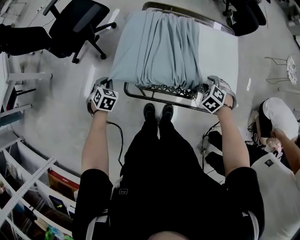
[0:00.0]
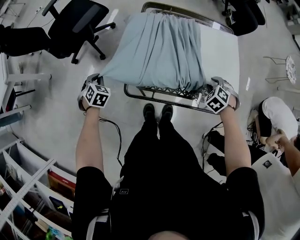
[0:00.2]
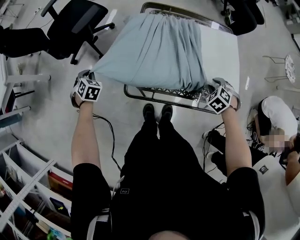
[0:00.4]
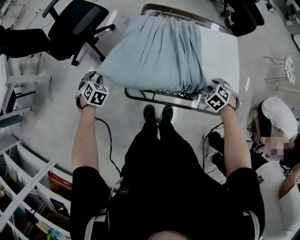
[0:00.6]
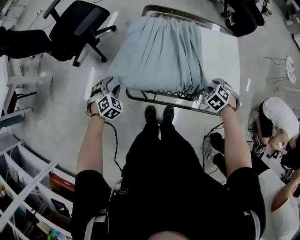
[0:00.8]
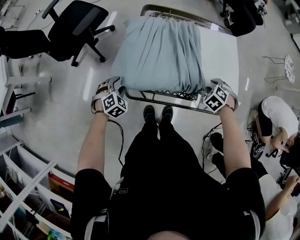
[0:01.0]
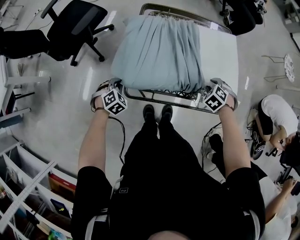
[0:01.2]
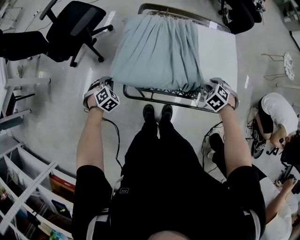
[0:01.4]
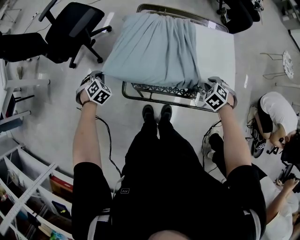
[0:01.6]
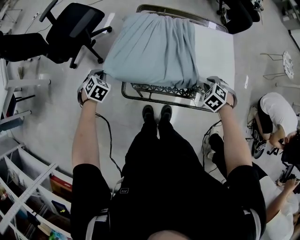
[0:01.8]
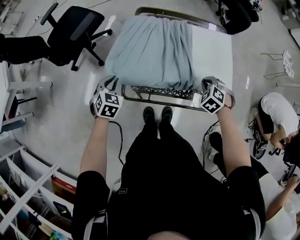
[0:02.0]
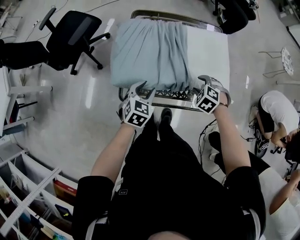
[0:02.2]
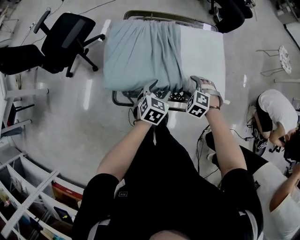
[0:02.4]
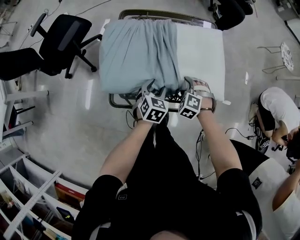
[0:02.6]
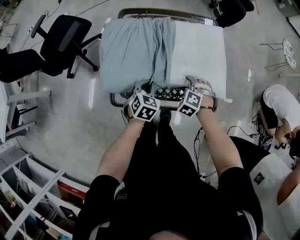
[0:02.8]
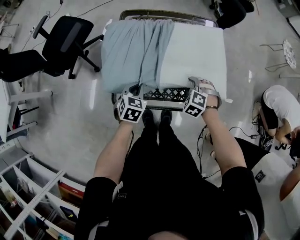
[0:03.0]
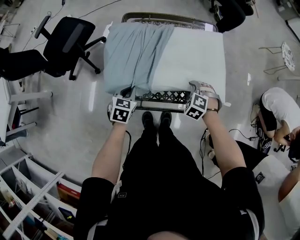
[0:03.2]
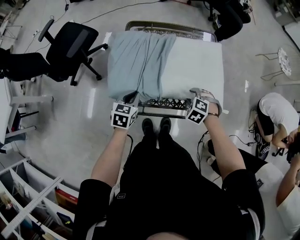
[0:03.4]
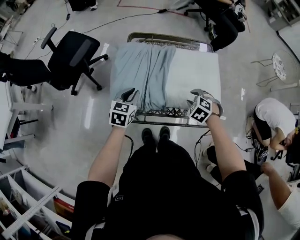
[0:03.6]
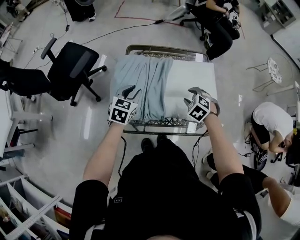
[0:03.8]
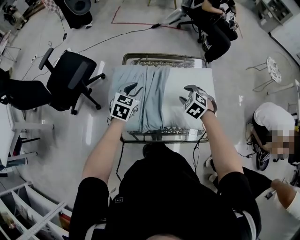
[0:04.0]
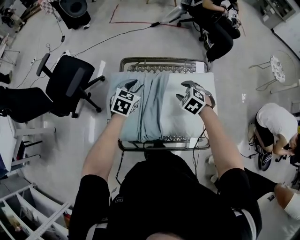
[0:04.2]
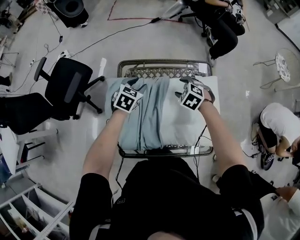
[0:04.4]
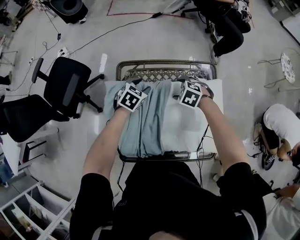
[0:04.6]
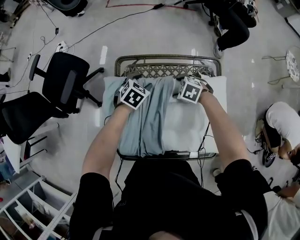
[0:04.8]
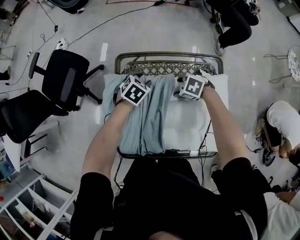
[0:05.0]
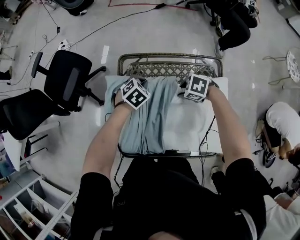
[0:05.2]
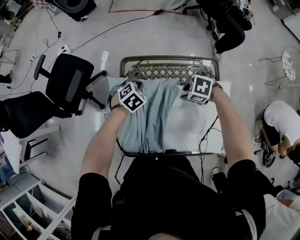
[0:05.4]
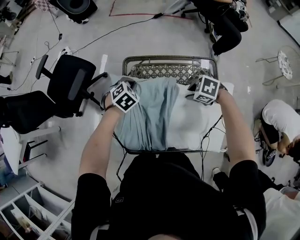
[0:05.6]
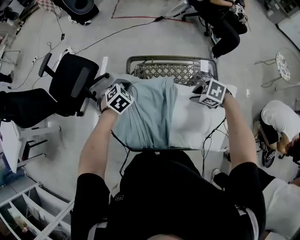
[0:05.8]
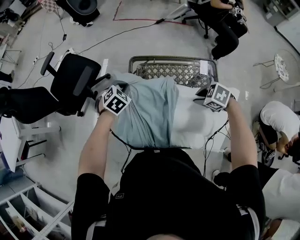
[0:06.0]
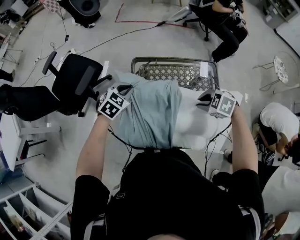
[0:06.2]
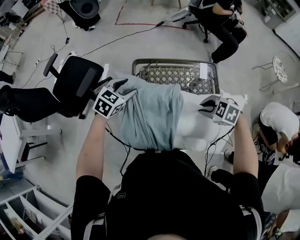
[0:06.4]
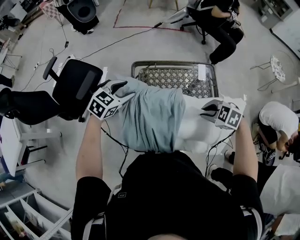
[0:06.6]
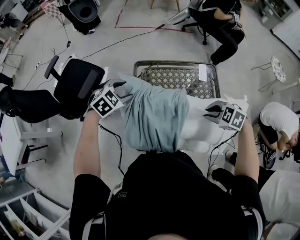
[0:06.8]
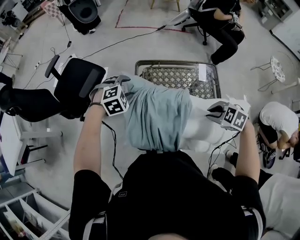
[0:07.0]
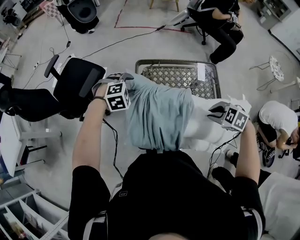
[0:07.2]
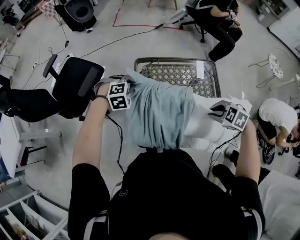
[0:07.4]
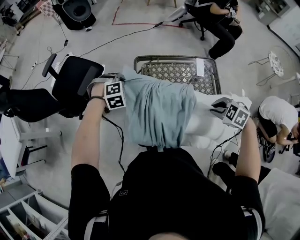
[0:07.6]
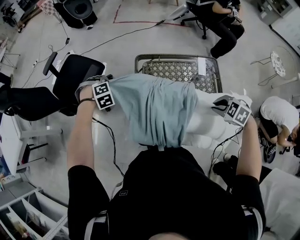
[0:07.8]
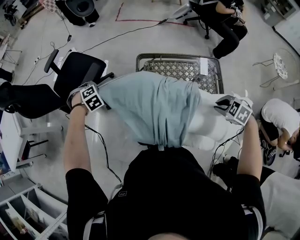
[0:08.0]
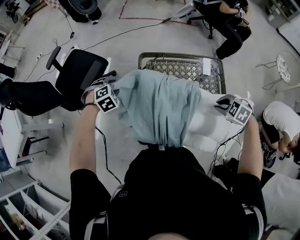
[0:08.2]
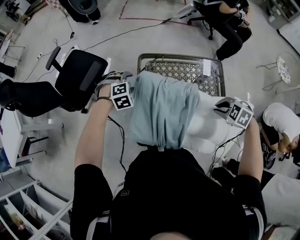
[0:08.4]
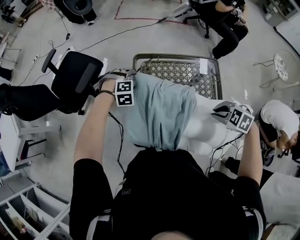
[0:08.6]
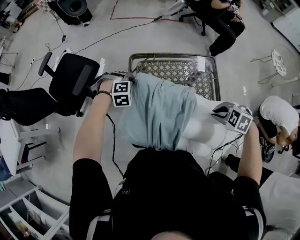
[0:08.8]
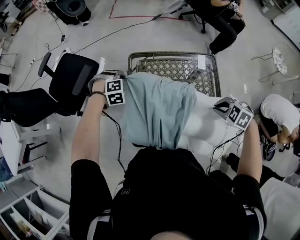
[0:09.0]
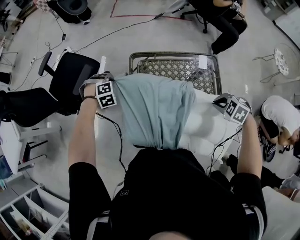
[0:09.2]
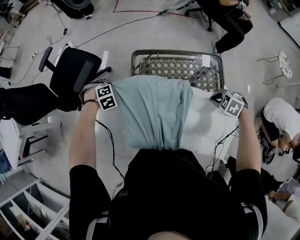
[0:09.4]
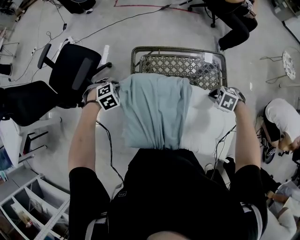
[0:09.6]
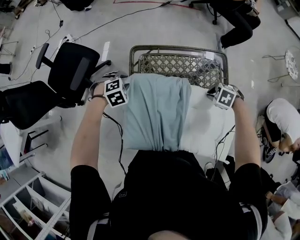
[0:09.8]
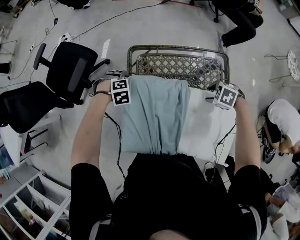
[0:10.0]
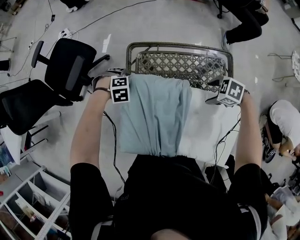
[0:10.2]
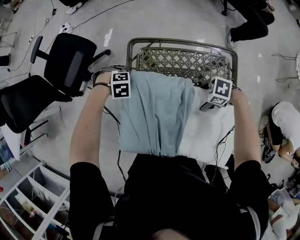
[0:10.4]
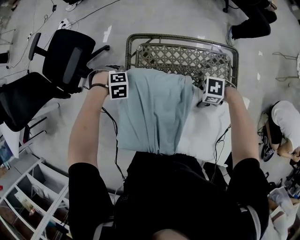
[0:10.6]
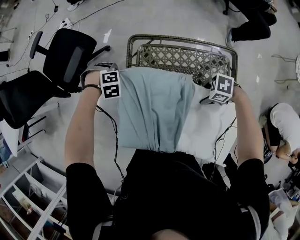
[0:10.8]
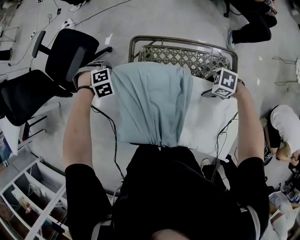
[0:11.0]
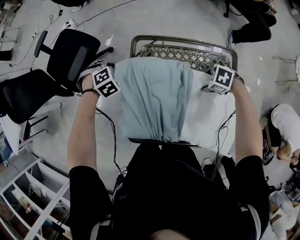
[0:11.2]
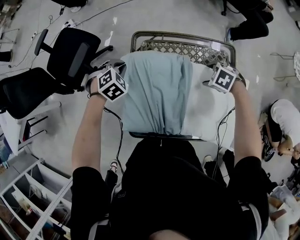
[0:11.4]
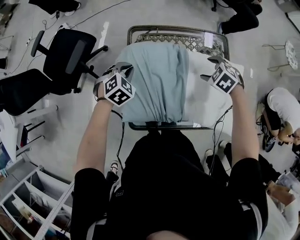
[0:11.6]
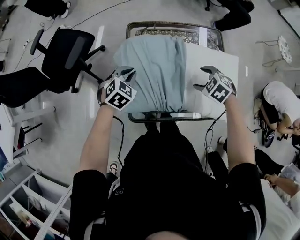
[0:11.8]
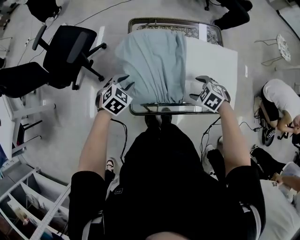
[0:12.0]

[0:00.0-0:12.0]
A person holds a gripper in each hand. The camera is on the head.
0:00.0 to 0:01.6: The left gripper goes left and right, some 15 cm each way, reversing 2 times, rotates approximately 20 degrees, and opens and closes again.
0:01.6 to 0:03.0: The right gripper opens and closes again. The left gripper shifts some 30 cm to the right, changes its angle by roughly 30 degrees, and opens, then closes again.
0:03.0 to 0:04.4: The two grippers go some 25 cm forward. The left gripper opens its fingers.
0:04.4 to 0:06.0: The left gripper reaches about 10 cm downward, then returns, changes its angle by about 20 degrees, and closes up. The right gripper moves roughly 15 cm, rotates approximately 20 degrees, and closes.
0:06.0 to 0:07.6: The left gripper moves to the left, some 5 cm, goes upward and returns, roughly 10 cm each way, turns by roughly 40 degrees, and opens, then closes again. The right gripper travels backward by about 10 cm.
0:07.6 to 0:09.0: The left gripper travels to the left and back again, roughly 15 cm each way, and opens, then closes once more.
0:09.0 to 0:10.4: Both grippers travel together downward, approximately 15 cm. The right gripper swivels about 40 degrees, and opens up; the left gripper changes its angle by roughly 30 degrees, and opens.
0:10.4 to 0:12.0: The right gripper moves approximately 15 cm, and changes its angle by some 40 degrees; the left gripper changes place by roughly 20 cm, points its fingers about 30 degrees further upward, and closes, then reopens.

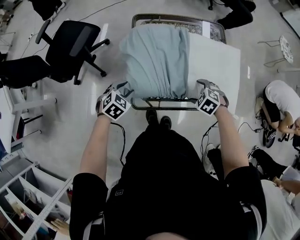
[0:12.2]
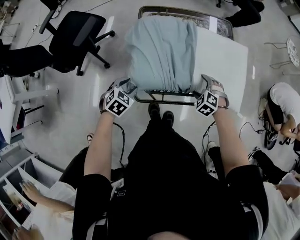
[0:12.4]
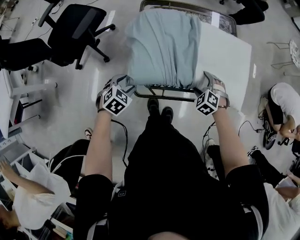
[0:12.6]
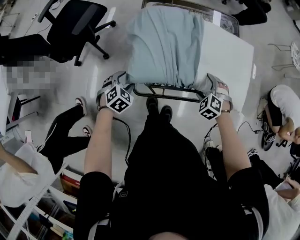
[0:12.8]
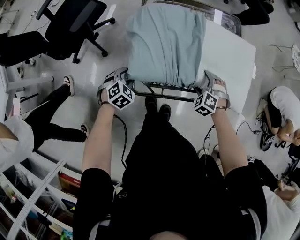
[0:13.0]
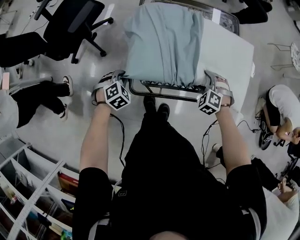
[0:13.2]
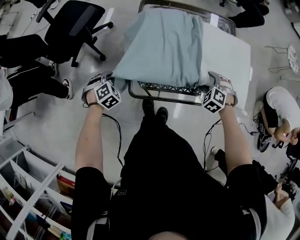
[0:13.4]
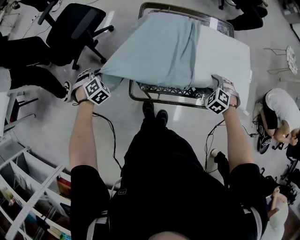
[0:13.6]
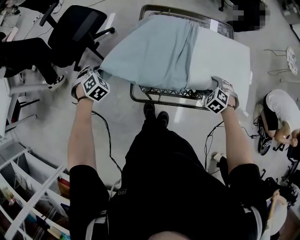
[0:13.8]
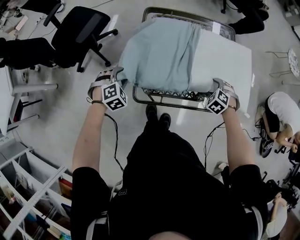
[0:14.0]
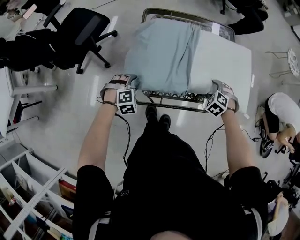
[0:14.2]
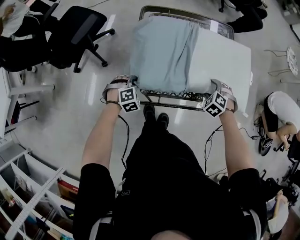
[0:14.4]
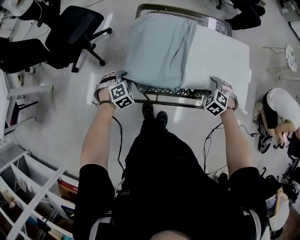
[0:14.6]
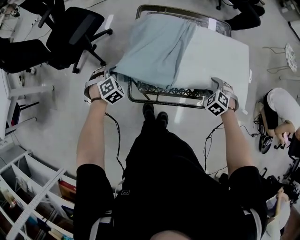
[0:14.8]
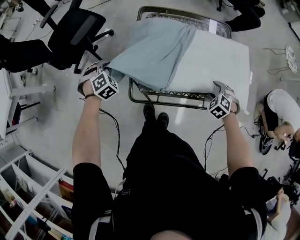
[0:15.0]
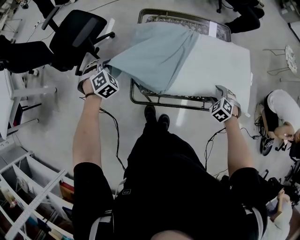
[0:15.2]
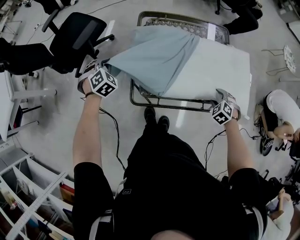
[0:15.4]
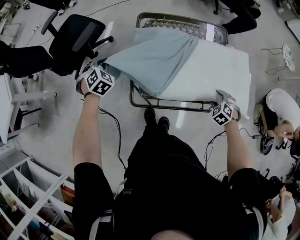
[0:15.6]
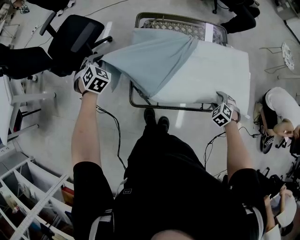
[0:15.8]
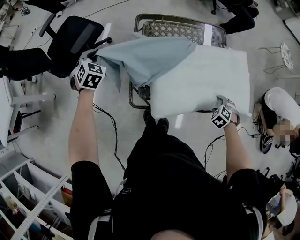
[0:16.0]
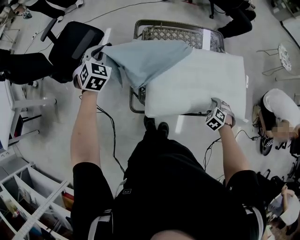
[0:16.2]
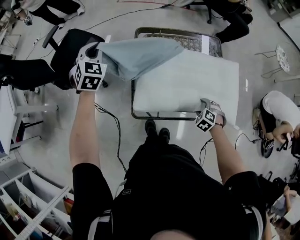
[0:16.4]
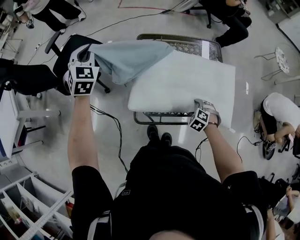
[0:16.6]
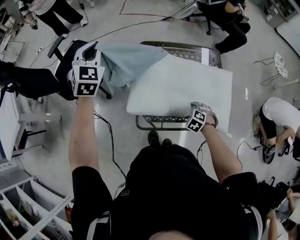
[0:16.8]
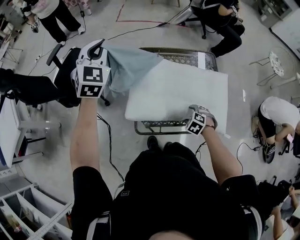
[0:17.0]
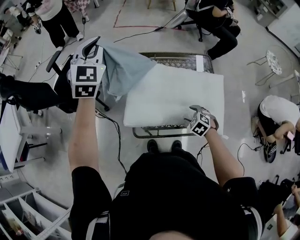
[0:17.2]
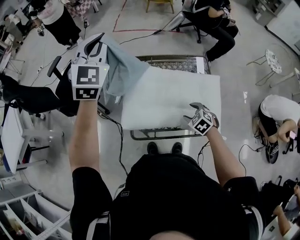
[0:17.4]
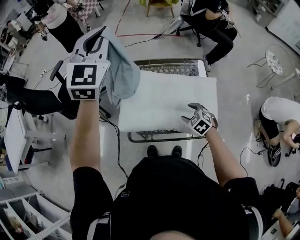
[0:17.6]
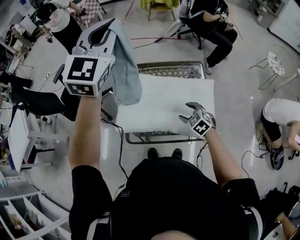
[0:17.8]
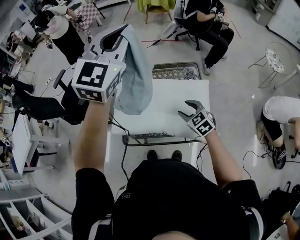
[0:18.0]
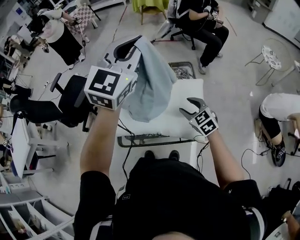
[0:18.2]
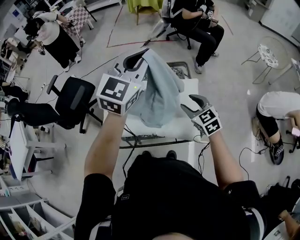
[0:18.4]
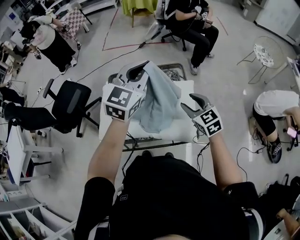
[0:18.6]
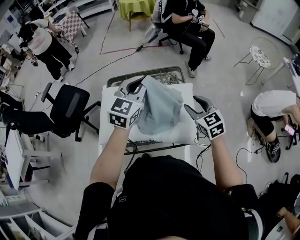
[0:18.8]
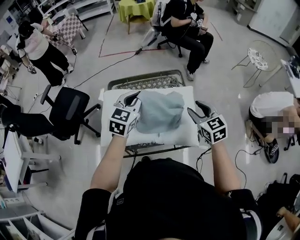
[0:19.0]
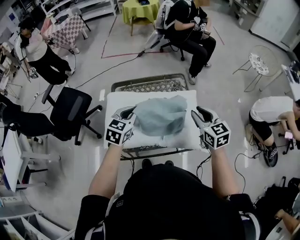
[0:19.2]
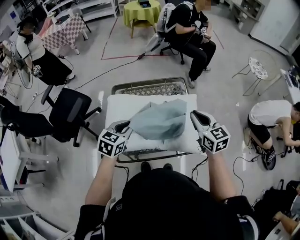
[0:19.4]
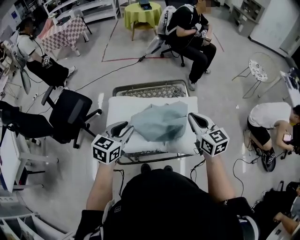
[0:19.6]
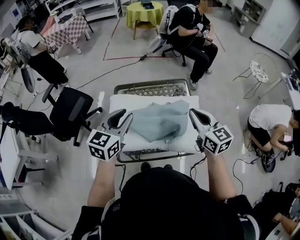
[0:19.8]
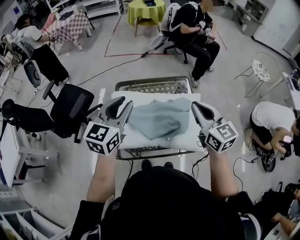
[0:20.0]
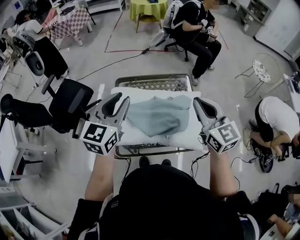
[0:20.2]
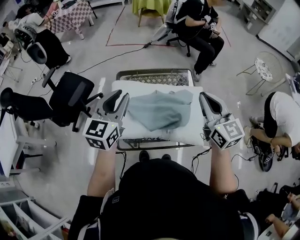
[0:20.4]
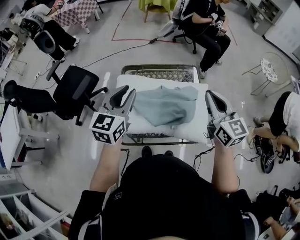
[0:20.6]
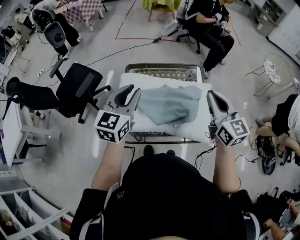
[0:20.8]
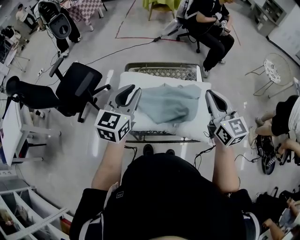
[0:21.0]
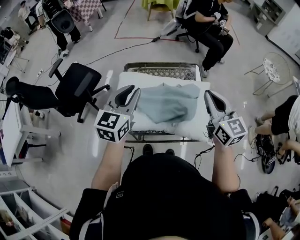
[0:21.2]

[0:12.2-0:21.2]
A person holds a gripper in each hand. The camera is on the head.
0:12.2 to 0:13.8: The left gripper travels downward and back again, roughly 10 cm each way, turns by about 30 degrees, and closes up, while the right gripper moves approximately 10 cm, and closes up.
0:13.8 to 0:15.2: The right gripper ends up about 5 cm from where it was. The left gripper moves about 15 cm to the right and comes back, and opens and closes again.
0:15.2 to 0:16.6: The right gripper moves to the left, roughly 10 cm; the left gripper heads upward and forward, covering roughly 25 cm, and rotates approximately 40 degrees.
0:16.6 to 0:18.2: The right gripper goes roughly 20 cm upward, and points its fingers roughly 40 degrees further upward. Meanwhile the left gripper ends up roughly 50 cm from where it was, and changes its angle by approximately 50 degrees.
0:18.2 to 0:19.8: The left gripper travels downward, to the left and backward by approximately 25 cm, turns by some 30 degrees, and opens its fingers. Meanwhile the right gripper heads upward, covering about 15 cm, swivels roughly 30 degrees, and closes.

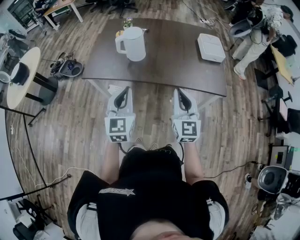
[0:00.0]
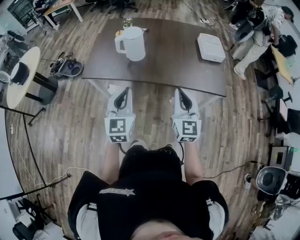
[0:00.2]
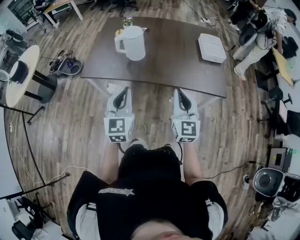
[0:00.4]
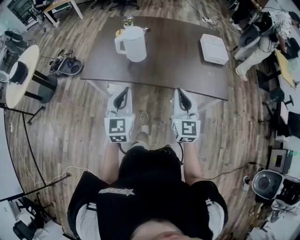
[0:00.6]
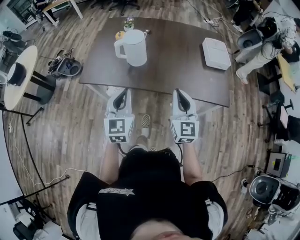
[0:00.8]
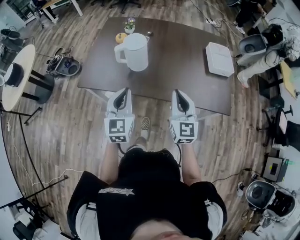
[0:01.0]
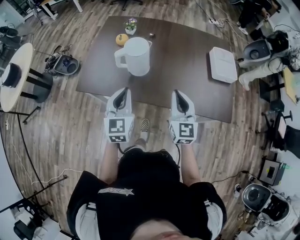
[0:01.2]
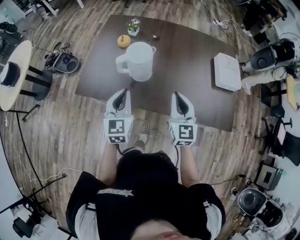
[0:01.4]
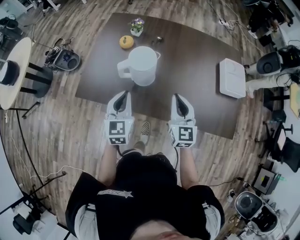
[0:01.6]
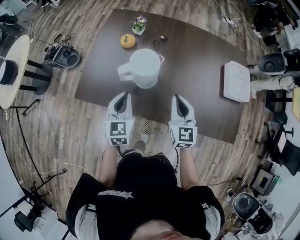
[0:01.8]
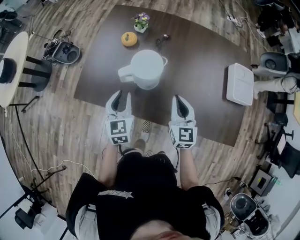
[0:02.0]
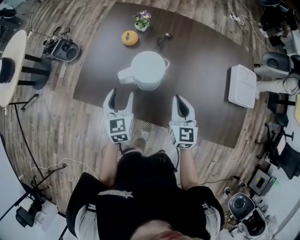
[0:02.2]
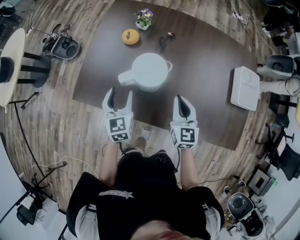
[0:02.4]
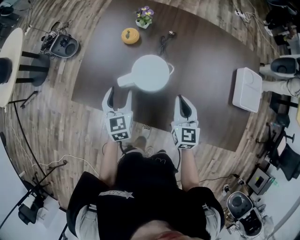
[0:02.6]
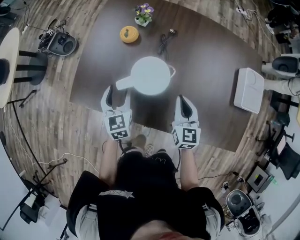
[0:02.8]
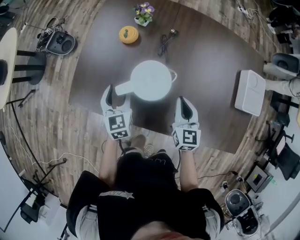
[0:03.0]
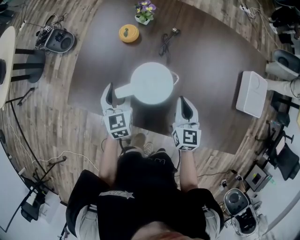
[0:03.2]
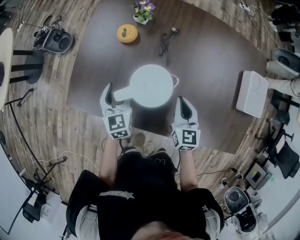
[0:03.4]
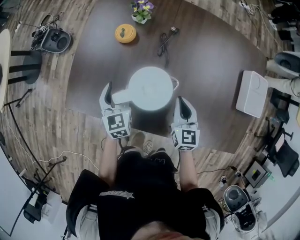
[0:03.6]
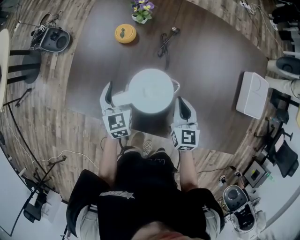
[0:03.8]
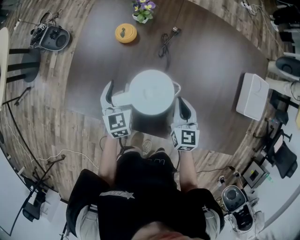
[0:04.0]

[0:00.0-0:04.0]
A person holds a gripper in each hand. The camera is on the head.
0:00.0 to 0:01.4: The two grippers go roughly 25 cm forward.
0:01.4 to 0:02.6: Both grippers move forward and downward, some 20 cm. The left gripper opens its fingers.
0:02.6 to 0:04.0: The right gripper heads downward, covering approximately 5 cm; the left gripper shifts about 10 cm forward and downward.
